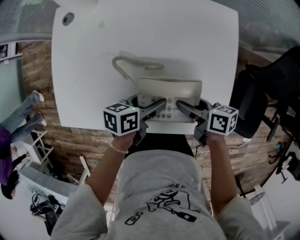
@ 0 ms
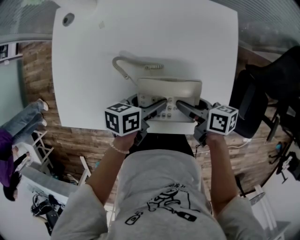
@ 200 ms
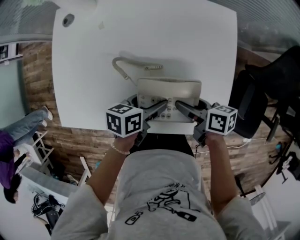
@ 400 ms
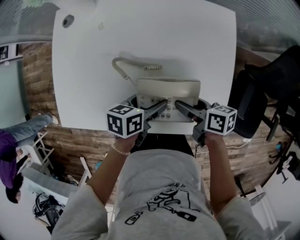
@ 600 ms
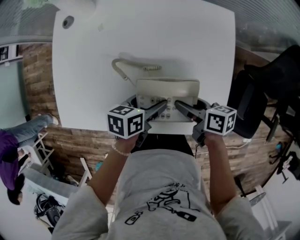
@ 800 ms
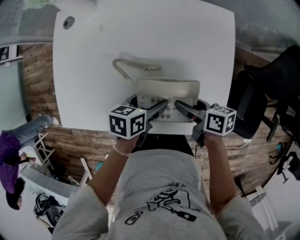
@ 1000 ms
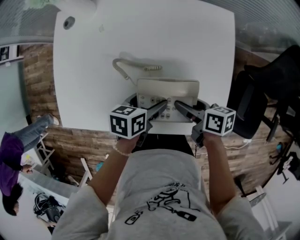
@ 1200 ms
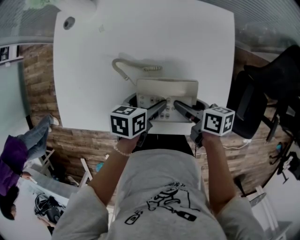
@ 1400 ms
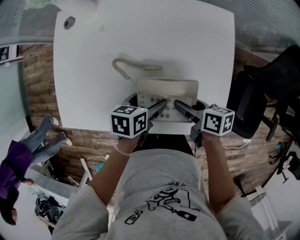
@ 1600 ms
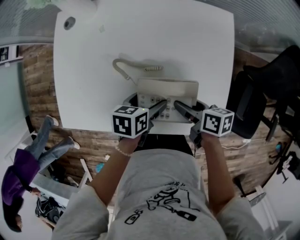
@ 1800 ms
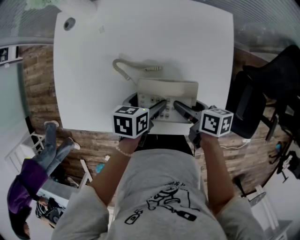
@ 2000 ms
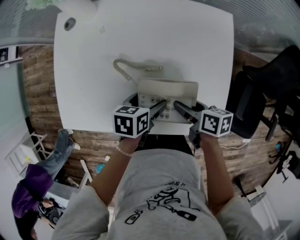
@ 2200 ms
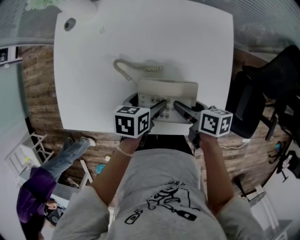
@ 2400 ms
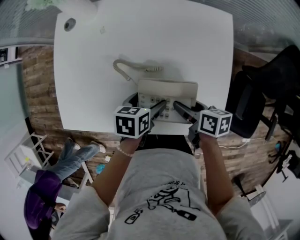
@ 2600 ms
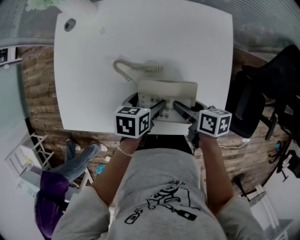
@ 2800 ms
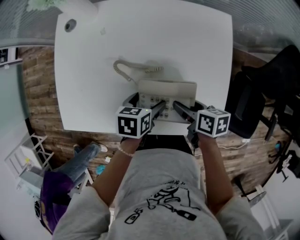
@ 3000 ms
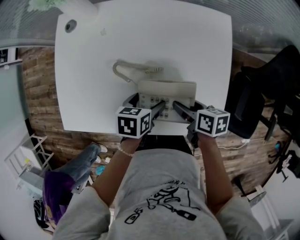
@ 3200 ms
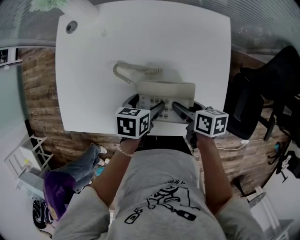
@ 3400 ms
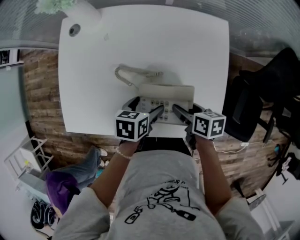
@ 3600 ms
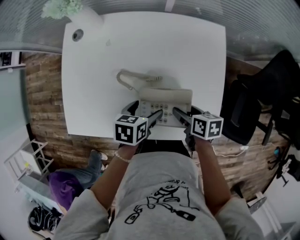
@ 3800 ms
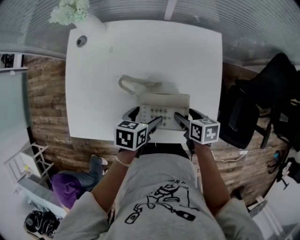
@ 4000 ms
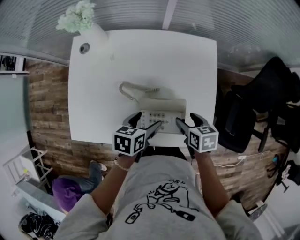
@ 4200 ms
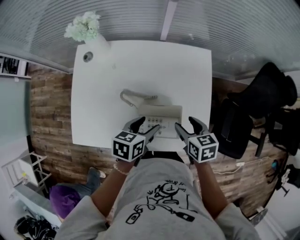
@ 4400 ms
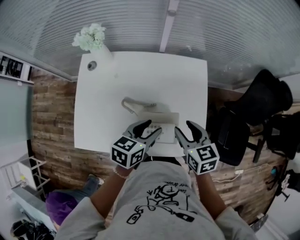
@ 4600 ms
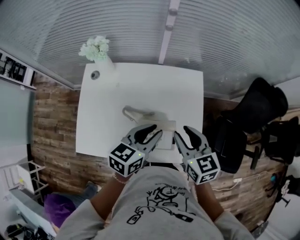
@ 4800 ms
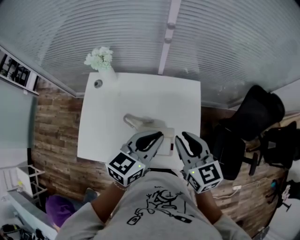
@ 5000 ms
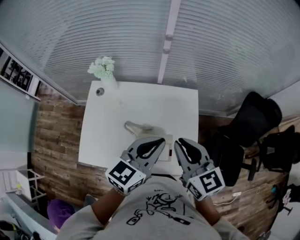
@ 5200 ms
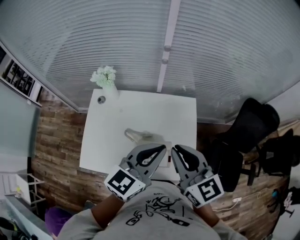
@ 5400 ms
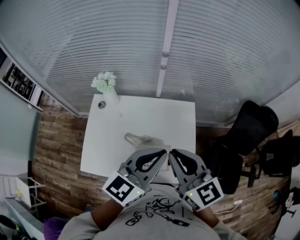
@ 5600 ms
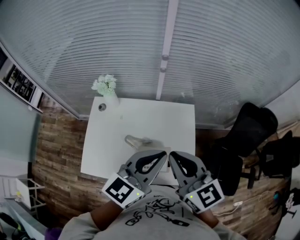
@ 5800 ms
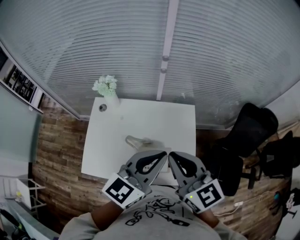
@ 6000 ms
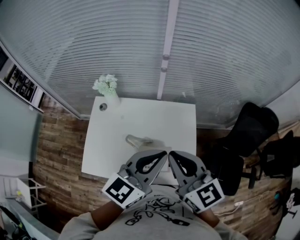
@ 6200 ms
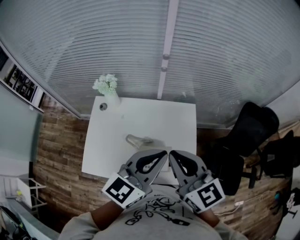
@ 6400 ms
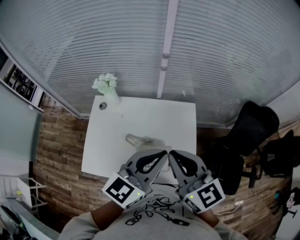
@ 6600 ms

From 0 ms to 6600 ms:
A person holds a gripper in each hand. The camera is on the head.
From 0 ms to 1600 ms: There are only small adjustments of the grippers.
From 1600 ms to 3200 ms: The grippers move only a little.
From 3200 ms to 5000 ms: Both grippers move upward, roughly 35 cm. The right gripper swivels some 50 degrees, and closes. Meanwhile the left gripper tips its fingers upward by roughly 40 degrees, and closes up.
From 5000 ms to 6600 ms: The two grippers go about 15 cm upward.

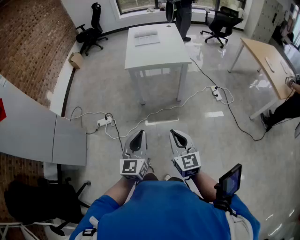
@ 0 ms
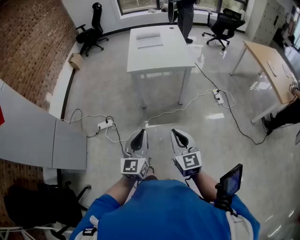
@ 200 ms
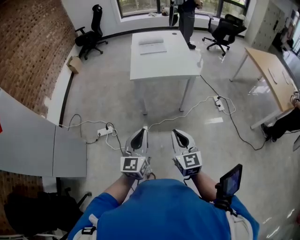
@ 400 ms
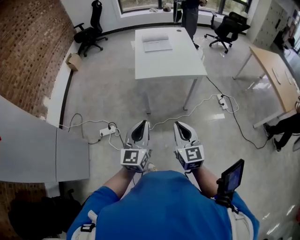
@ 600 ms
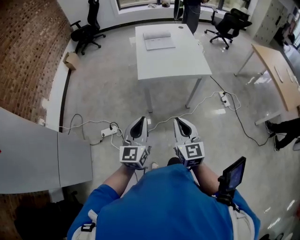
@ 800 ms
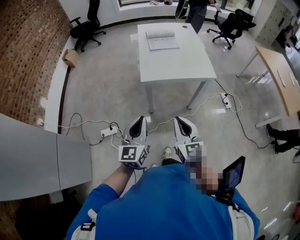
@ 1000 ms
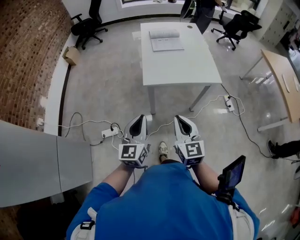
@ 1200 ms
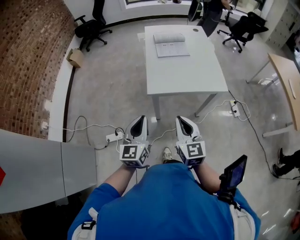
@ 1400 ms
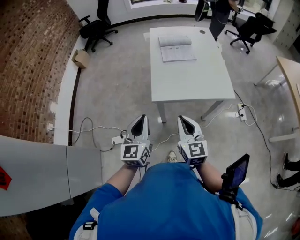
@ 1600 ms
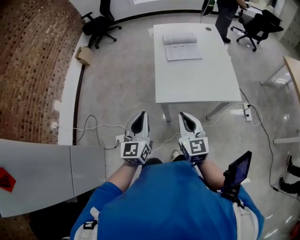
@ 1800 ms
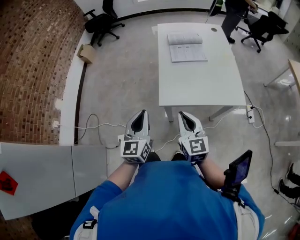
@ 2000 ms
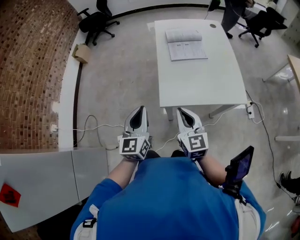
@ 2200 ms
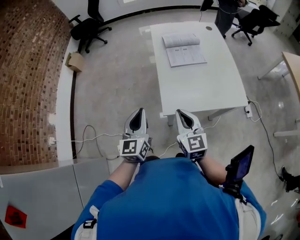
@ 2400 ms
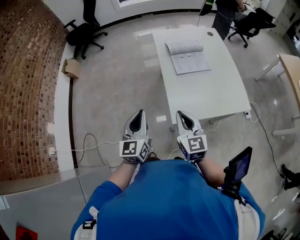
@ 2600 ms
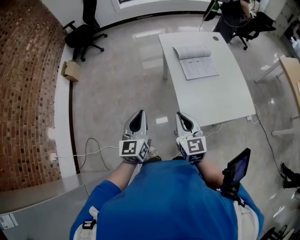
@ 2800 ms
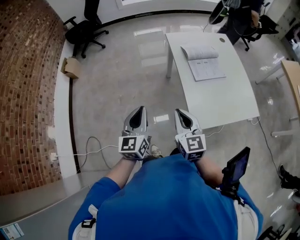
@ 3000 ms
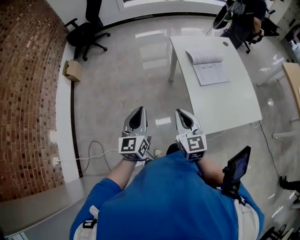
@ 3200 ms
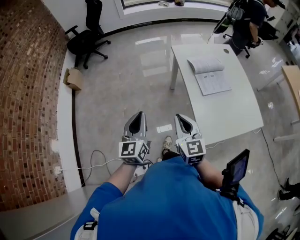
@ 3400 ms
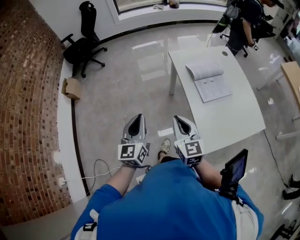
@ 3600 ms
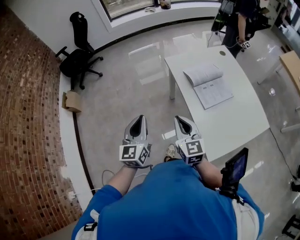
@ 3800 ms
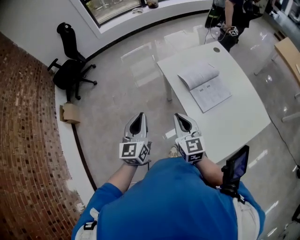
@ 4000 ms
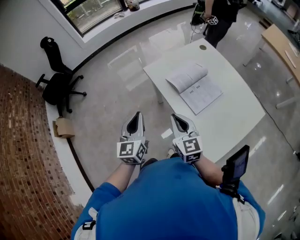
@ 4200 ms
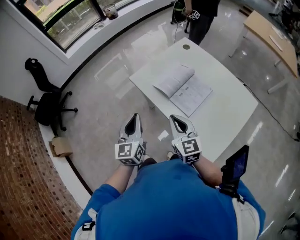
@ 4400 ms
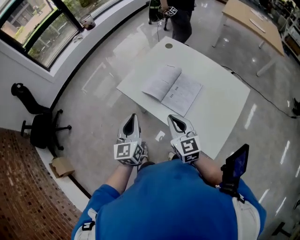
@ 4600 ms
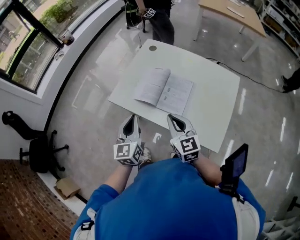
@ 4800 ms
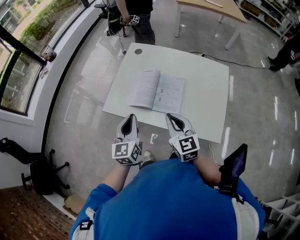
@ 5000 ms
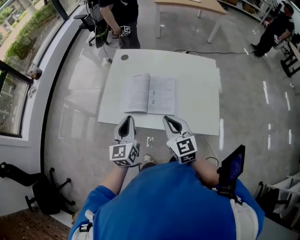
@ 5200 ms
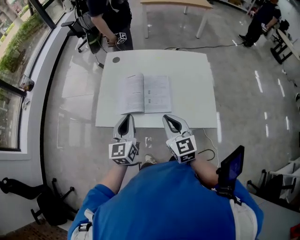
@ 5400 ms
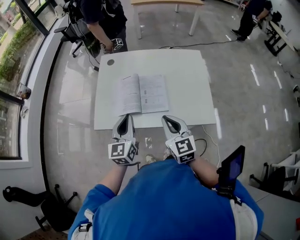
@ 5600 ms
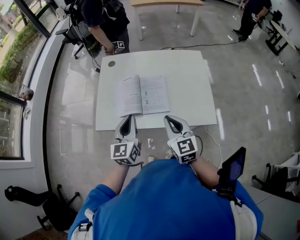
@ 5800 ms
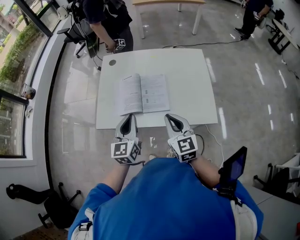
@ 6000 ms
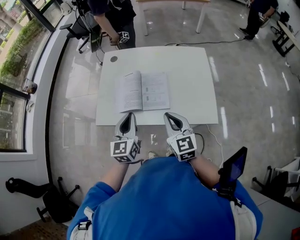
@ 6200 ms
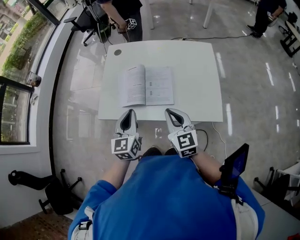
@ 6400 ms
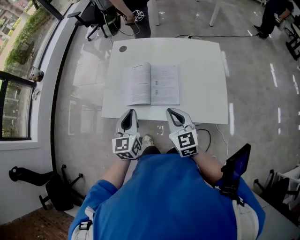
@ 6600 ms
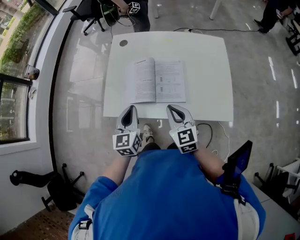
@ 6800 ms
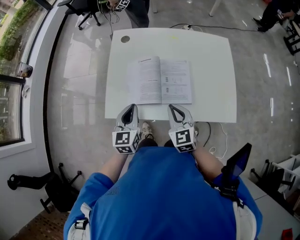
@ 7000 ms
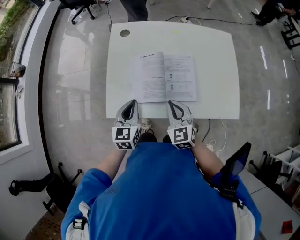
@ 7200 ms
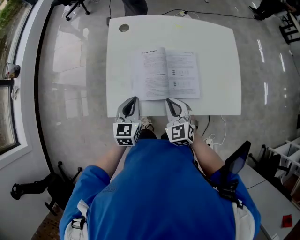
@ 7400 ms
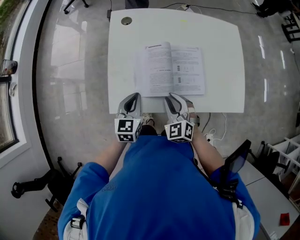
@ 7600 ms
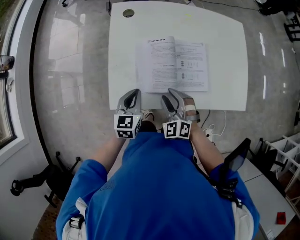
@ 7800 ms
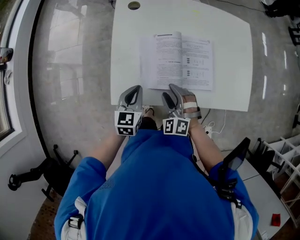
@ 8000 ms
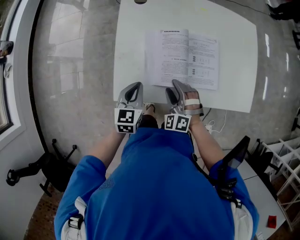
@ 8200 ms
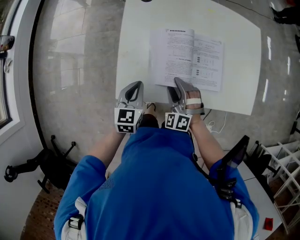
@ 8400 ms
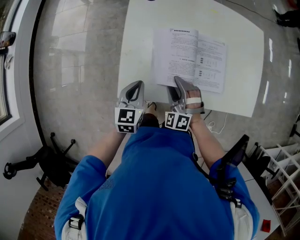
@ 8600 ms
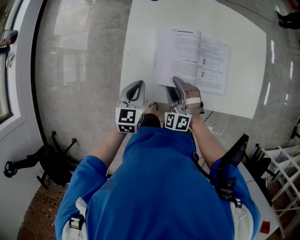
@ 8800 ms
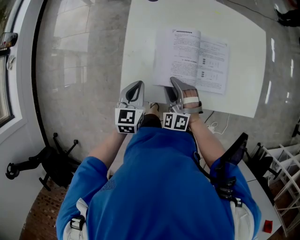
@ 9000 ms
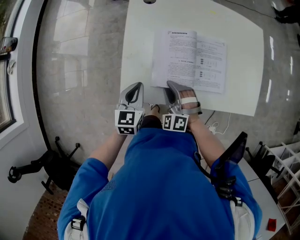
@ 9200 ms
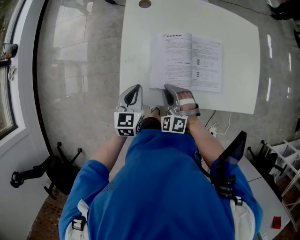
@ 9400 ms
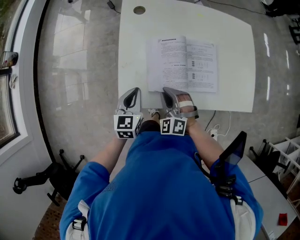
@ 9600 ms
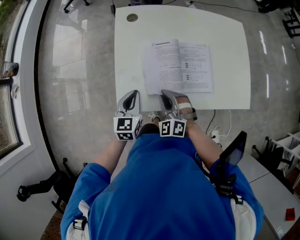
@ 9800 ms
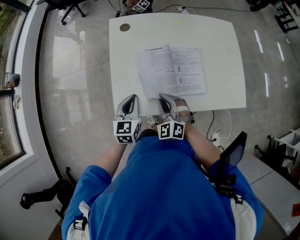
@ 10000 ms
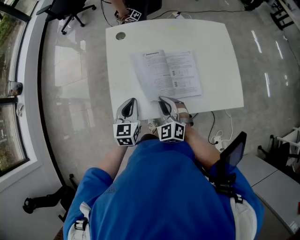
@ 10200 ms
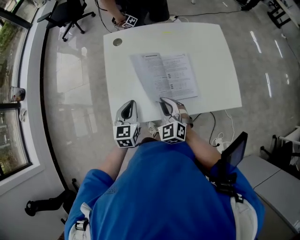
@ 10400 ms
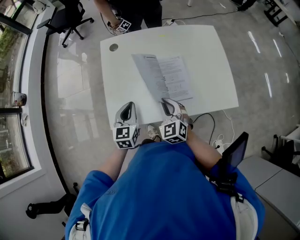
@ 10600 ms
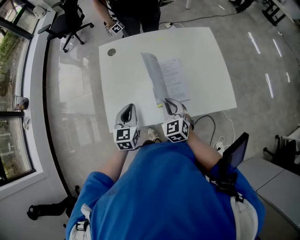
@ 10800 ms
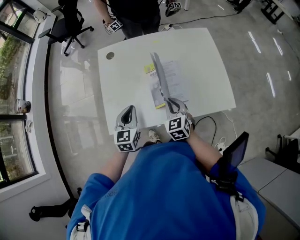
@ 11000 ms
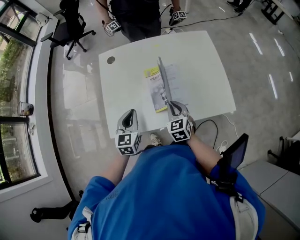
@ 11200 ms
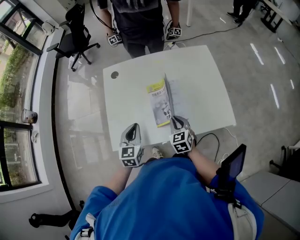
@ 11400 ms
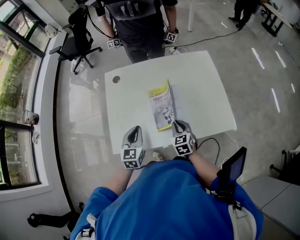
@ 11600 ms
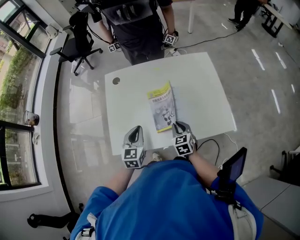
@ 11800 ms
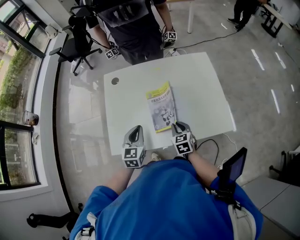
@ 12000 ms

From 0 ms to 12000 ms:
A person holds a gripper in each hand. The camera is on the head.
From 0 ms to 1600 ms: Both grippers are carried forward, about 50 cm.
From 1600 ms to 3000 ms: The two grippers travel together, forward and to the left, about 40 cm.
From 3000 ms to 4400 ms: The left gripper moves roughly 40 cm, and changes its angle by roughly 30 degrees. Meanwhile the right gripper moves approximately 30 cm, and rotates roughly 30 degrees.
From 4400 ms to 6000 ms: The right gripper ends up some 5 cm from where it was, and changes its angle by some 50 degrees, while the left gripper changes place by approximately 15 cm, and changes its angle by some 50 degrees.
From 6000 ms to 7600 ms: The right gripper travels to the left, downward and forward by approximately 25 cm, and swivels roughly 40 degrees. The left gripper is displaced downward, to the left and forward by some 25 cm, and swivels roughly 20 degrees.
From 7600 ms to 9000 ms: The left gripper travels to the left by approximately 5 cm. The right gripper goes some 10 cm to the left and downward, turns by some 30 degrees, and opens up.
From 9000 ms to 10400 ms: Both grippers move upward and to the right, roughly 10 cm. The right gripper swivels some 30 degrees, and closes up.
From 10400 ms to 12000 ms: The left gripper heads to the right, covering some 10 cm; the right gripper is displaced to the right by about 15 cm, and changes its angle by approximately 30 degrees.

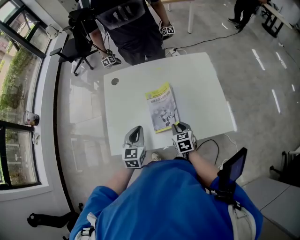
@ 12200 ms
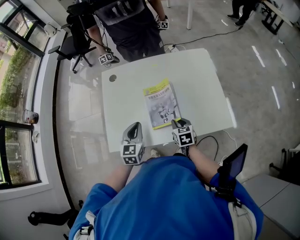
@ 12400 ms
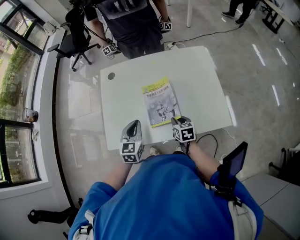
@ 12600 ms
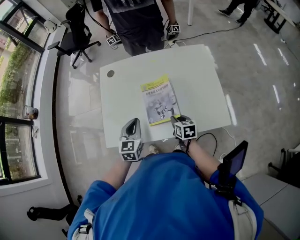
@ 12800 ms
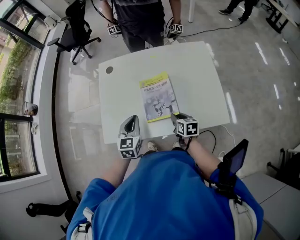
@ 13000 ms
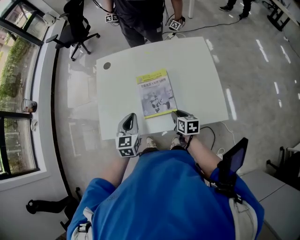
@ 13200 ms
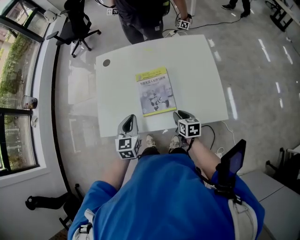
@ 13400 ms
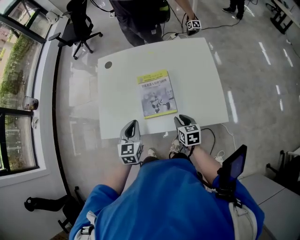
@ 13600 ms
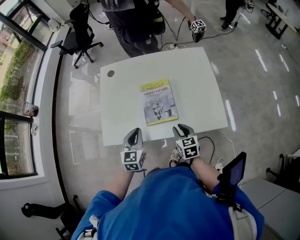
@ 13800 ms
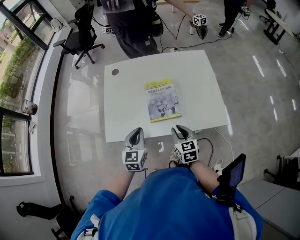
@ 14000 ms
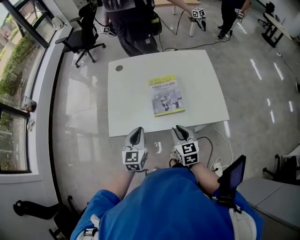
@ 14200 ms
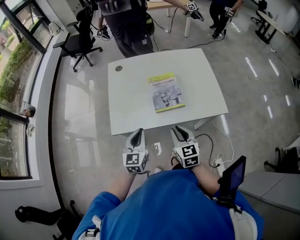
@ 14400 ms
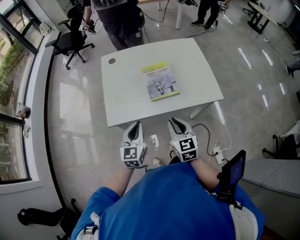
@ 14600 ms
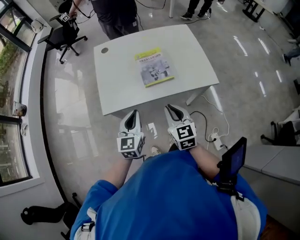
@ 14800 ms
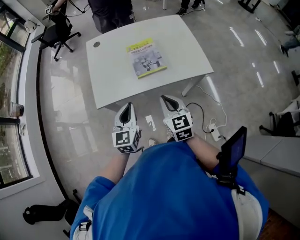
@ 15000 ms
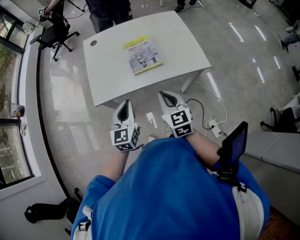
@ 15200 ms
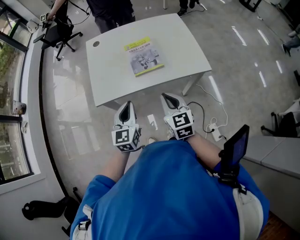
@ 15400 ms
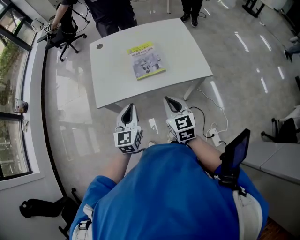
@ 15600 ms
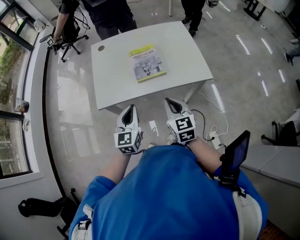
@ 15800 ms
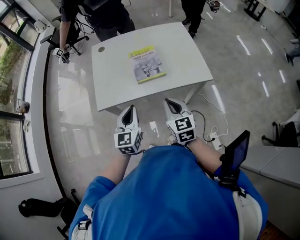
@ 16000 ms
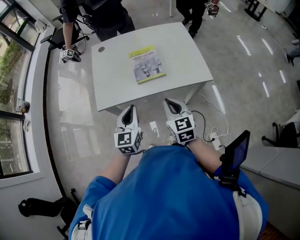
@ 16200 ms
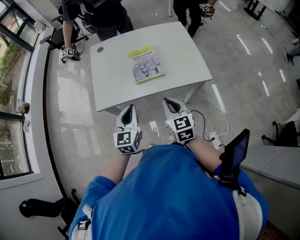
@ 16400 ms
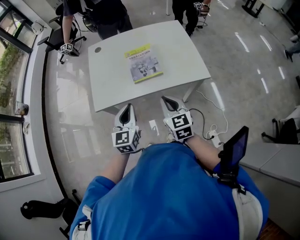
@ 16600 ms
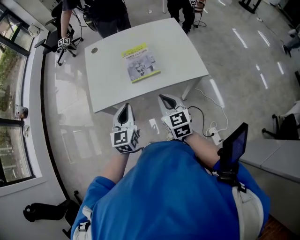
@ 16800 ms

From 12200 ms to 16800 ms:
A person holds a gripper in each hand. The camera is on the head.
From 12200 ms to 13800 ms: Both grippers move backward, roughly 5 cm.
From 13800 ms to 15200 ms: Both grippers move backward and upward, about 20 cm. The right gripper turns by some 20 degrees.
From 15200 ms to 16800 ms: The grippers move only a little.
